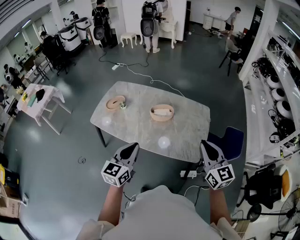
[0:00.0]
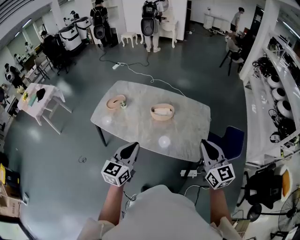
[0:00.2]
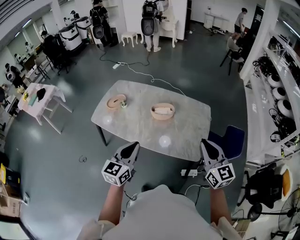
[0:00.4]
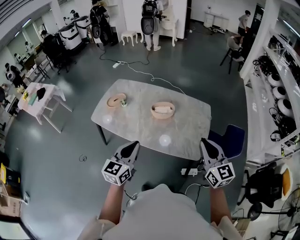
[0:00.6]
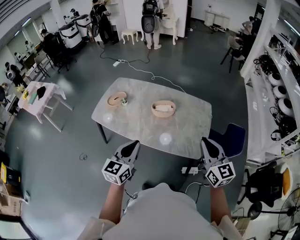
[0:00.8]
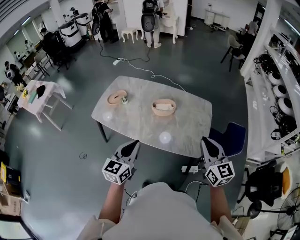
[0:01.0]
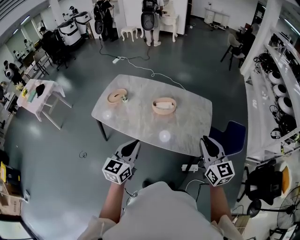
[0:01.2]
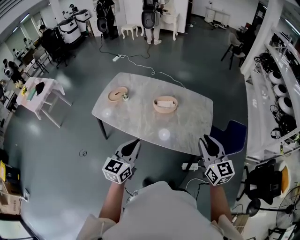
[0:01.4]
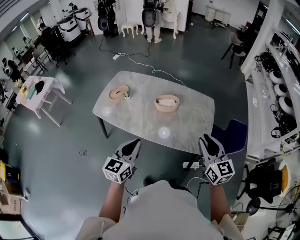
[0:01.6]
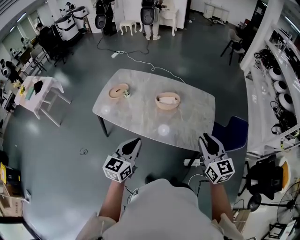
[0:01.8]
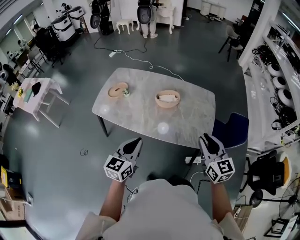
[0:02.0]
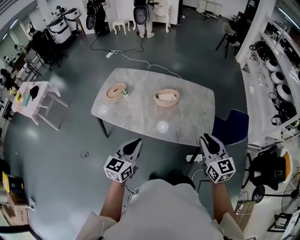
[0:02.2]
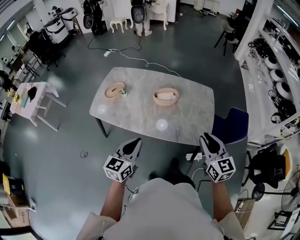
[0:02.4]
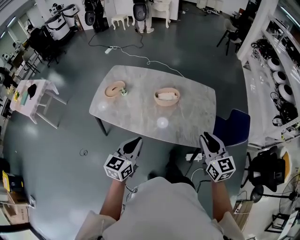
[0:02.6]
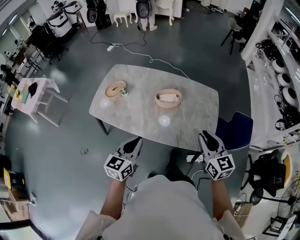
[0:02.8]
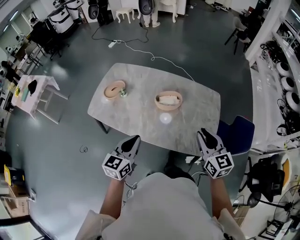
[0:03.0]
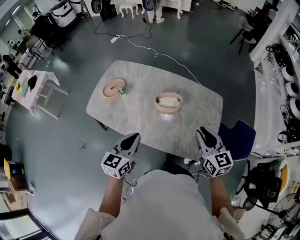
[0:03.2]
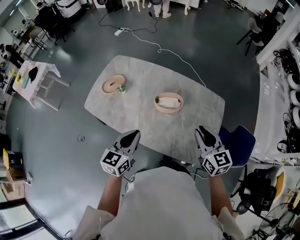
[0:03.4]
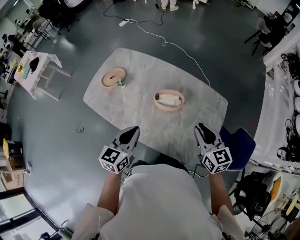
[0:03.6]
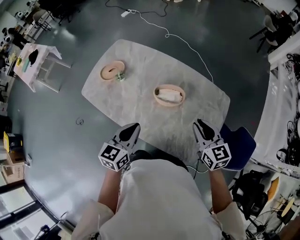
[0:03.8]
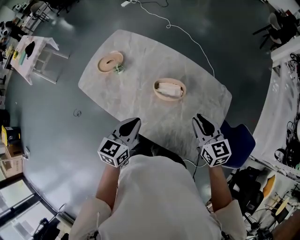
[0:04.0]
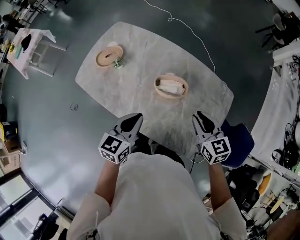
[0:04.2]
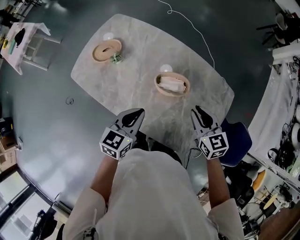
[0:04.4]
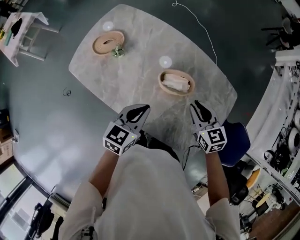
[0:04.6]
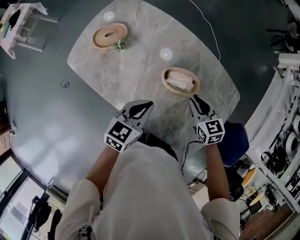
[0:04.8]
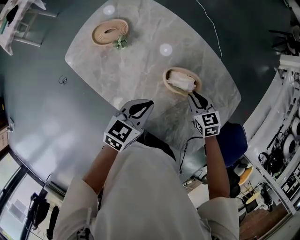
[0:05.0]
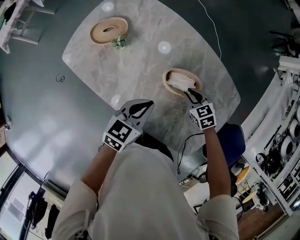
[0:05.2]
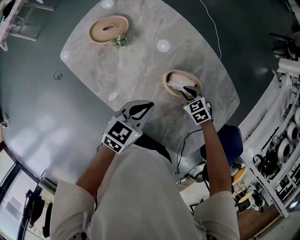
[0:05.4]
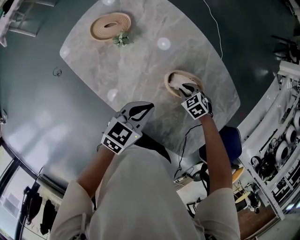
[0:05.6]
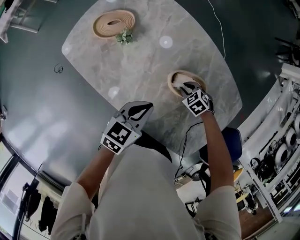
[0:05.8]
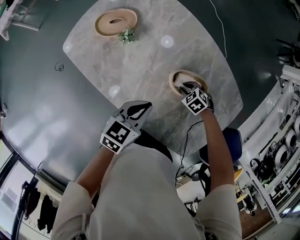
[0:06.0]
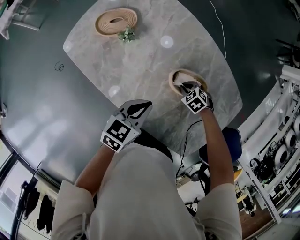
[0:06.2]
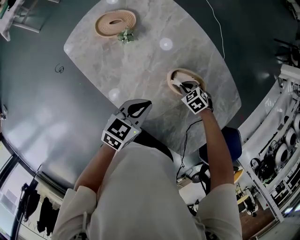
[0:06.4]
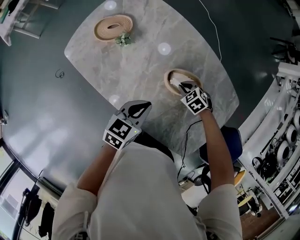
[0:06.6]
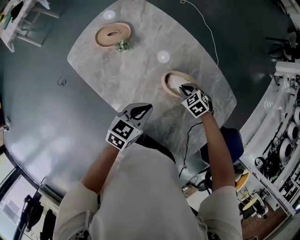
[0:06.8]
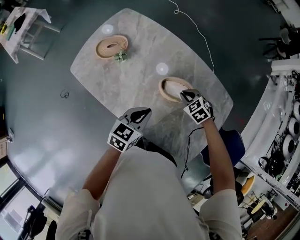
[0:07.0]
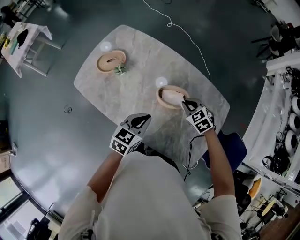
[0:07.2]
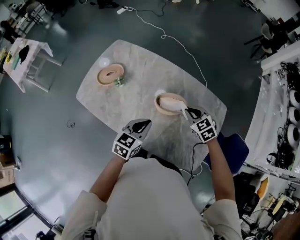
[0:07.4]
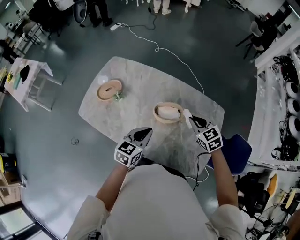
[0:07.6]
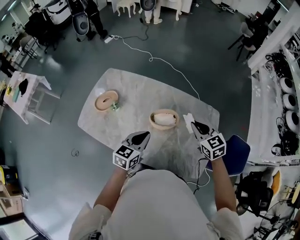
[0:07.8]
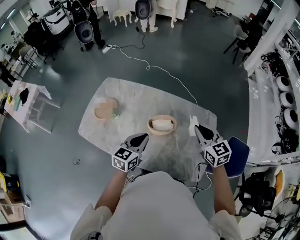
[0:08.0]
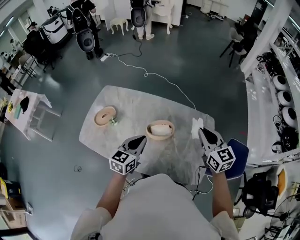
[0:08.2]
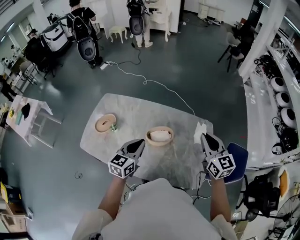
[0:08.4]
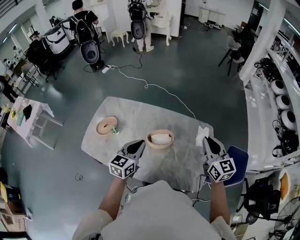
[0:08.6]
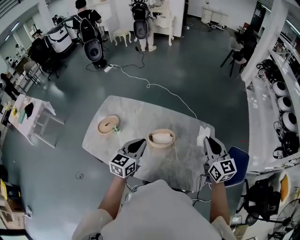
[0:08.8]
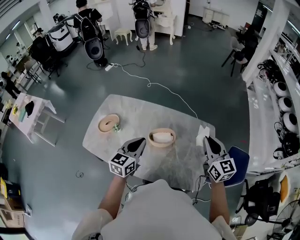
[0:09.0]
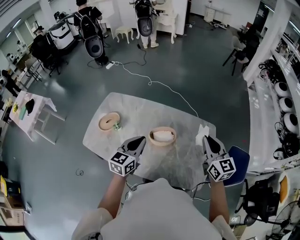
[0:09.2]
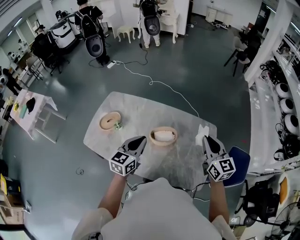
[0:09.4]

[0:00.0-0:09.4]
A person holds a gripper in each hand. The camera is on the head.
0:00.0 to 0:01.6: The grippers make only small movements.
0:01.6 to 0:03.2: Both grippers travel together forward, approximately 20 cm.
0:03.2 to 0:04.8: The grippers both shift forward and downward by about 30 cm. The right gripper swivels some 30 degrees.
0:04.8 to 0:06.2: The left gripper heads downward, covering about 5 cm. The right gripper shifts about 25 cm downward, and angles its fingers downward, by about 30 degrees.
0:06.2 to 0:07.8: The right gripper moves upward, roughly 40 cm, and tilts its fingers some 40 degrees upward. The left gripper goes roughly 15 cm upward, and rotates approximately 20 degrees.
0:07.8 to 0:09.4: The left gripper shifts about 10 cm upward; the right gripper is displaced upward and to the right by approximately 15 cm, and changes its angle by approximately 30 degrees.

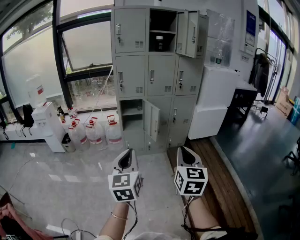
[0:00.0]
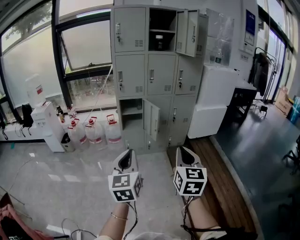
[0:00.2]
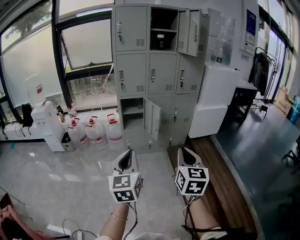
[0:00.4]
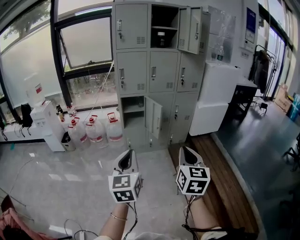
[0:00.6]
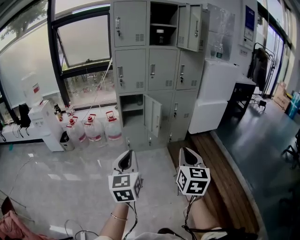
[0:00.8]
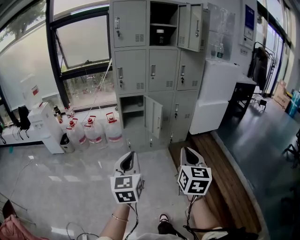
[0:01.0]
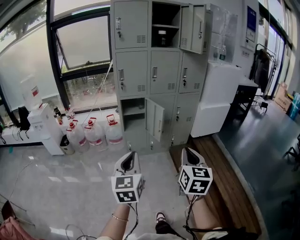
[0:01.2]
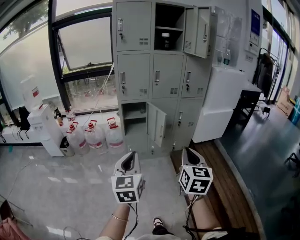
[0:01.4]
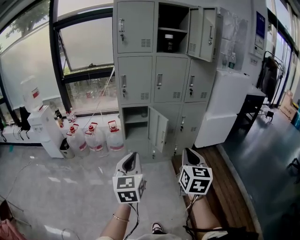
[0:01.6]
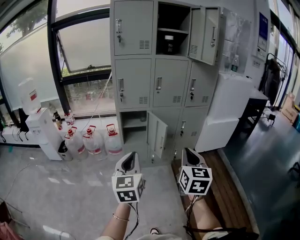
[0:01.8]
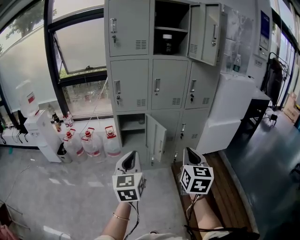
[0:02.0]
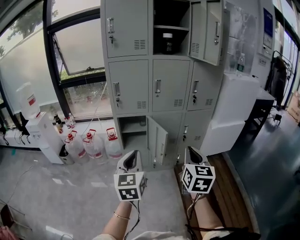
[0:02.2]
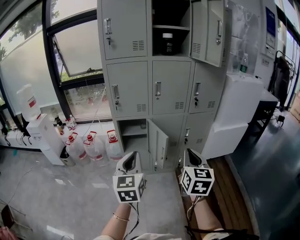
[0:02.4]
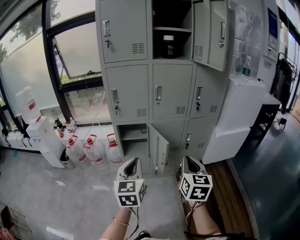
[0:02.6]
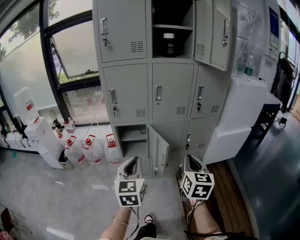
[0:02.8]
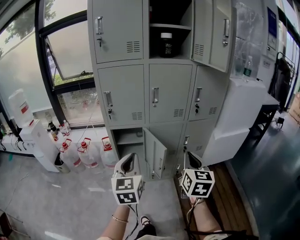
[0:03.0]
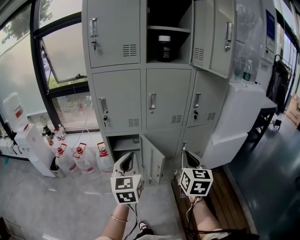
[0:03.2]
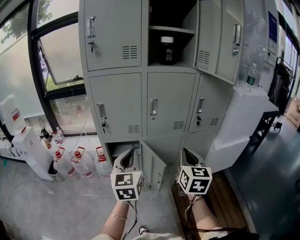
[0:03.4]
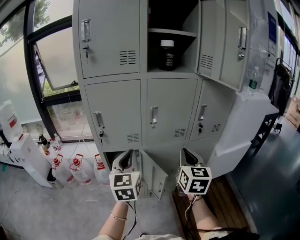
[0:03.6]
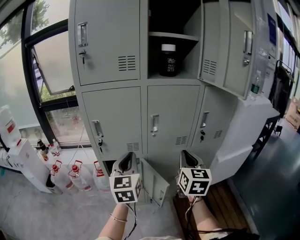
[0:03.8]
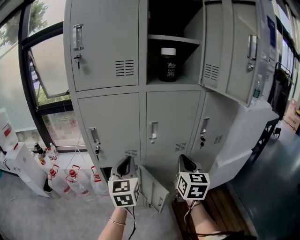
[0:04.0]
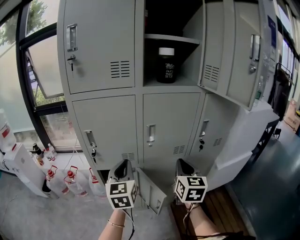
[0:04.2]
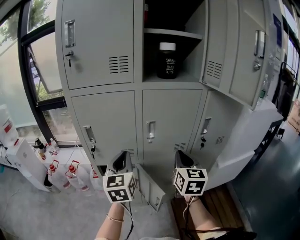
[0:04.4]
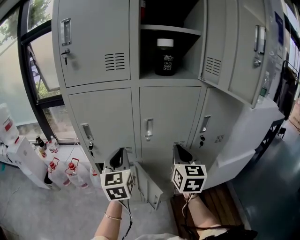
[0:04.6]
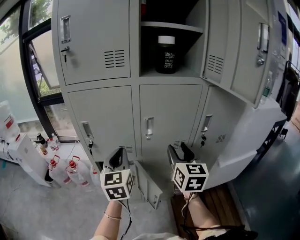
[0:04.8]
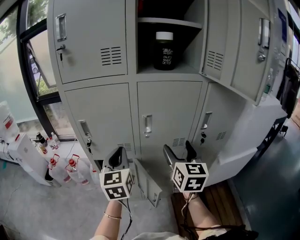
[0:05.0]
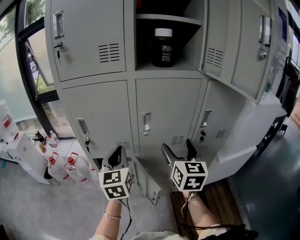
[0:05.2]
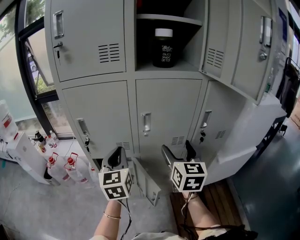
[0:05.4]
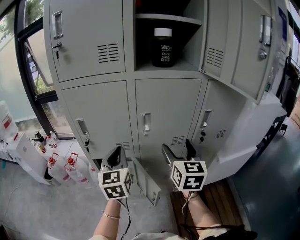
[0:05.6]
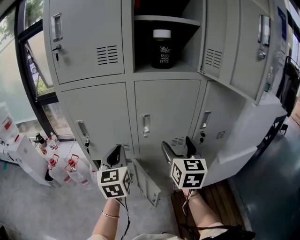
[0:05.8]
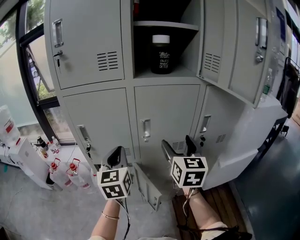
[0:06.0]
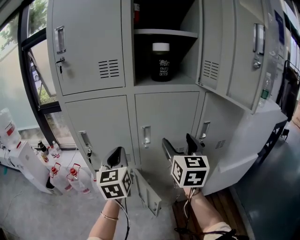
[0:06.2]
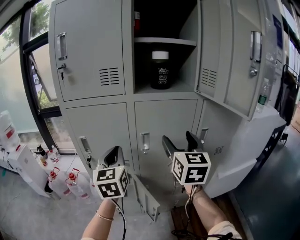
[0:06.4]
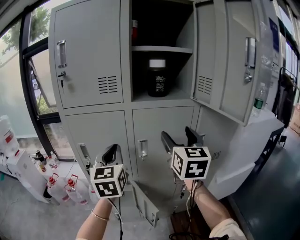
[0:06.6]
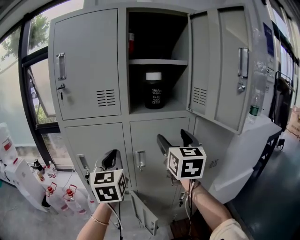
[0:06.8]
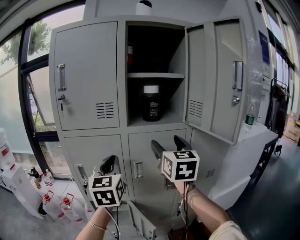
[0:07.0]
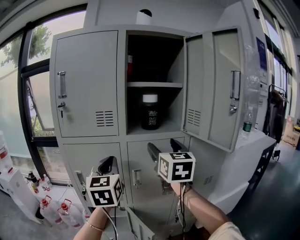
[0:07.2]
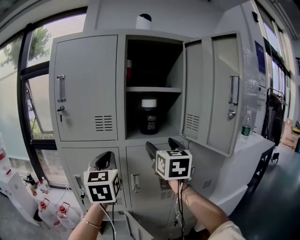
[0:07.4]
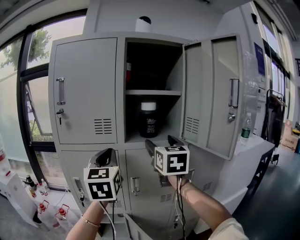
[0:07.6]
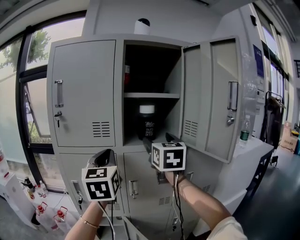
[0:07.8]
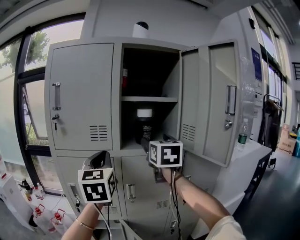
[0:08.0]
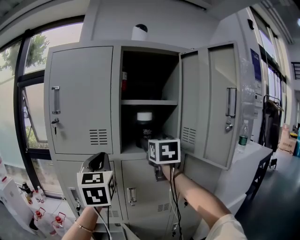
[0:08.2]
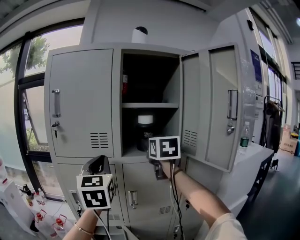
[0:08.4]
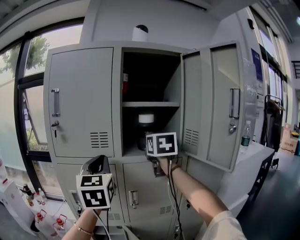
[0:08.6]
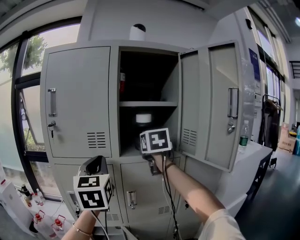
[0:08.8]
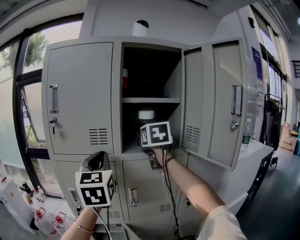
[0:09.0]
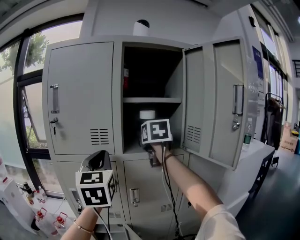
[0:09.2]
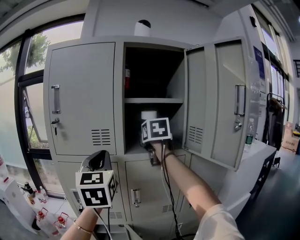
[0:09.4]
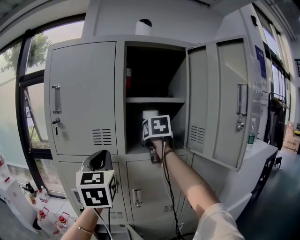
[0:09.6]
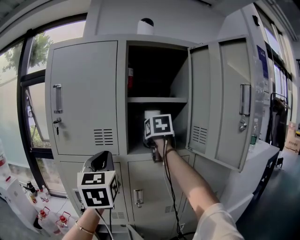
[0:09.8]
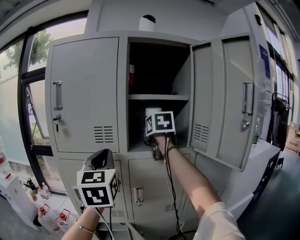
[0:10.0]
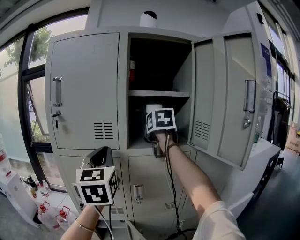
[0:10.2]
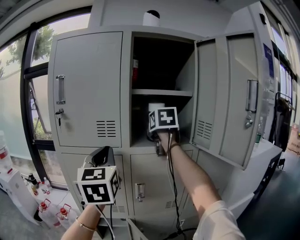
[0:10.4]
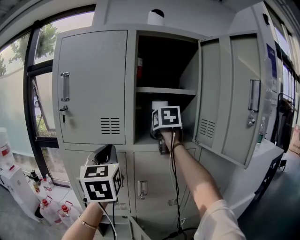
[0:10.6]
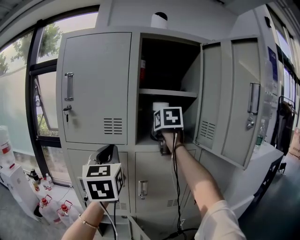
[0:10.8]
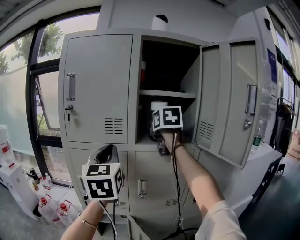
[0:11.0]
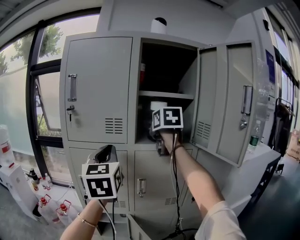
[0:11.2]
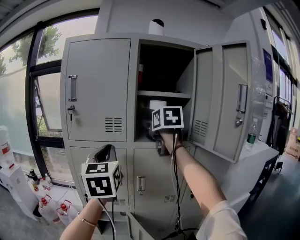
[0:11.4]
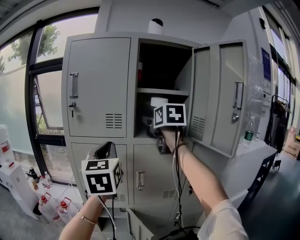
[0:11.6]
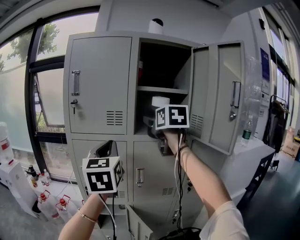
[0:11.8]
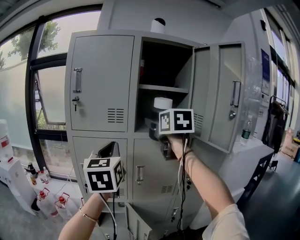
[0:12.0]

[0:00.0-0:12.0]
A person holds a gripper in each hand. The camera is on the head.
0:00.0 to 0:01.6: The grippers both shift forward by some 10 cm.
0:01.6 to 0:03.0: Both grippers travel together forward, approximately 25 cm.
0:03.0 to 0:04.4: The grippers both shift forward by approximately 25 cm.
0:04.4 to 0:06.0: The right gripper moves about 5 cm, and opens.
0:06.0 to 0:07.6: The two grippers go roughly 20 cm upward.
0:07.6 to 0:09.0: The right gripper moves forward, some 10 cm.
0:09.0 to 0:10.4: The grippers stay close to where they were, moving slightly.
0:10.4 to 0:12.0: The left gripper travels backward by roughly 5 cm. Meanwhile the right gripper heads backward, covering approximately 15 cm.

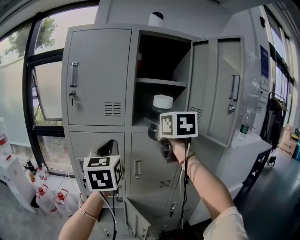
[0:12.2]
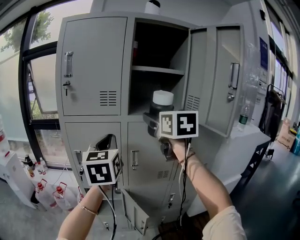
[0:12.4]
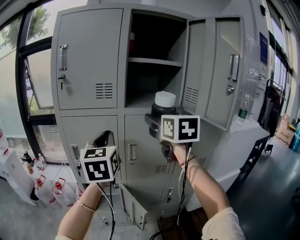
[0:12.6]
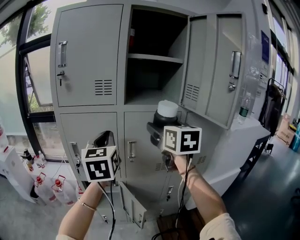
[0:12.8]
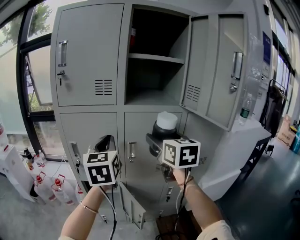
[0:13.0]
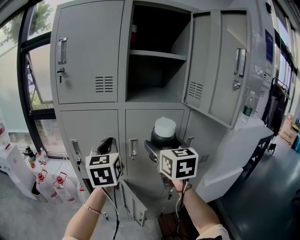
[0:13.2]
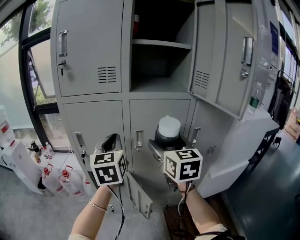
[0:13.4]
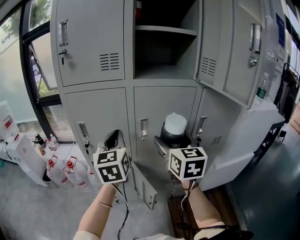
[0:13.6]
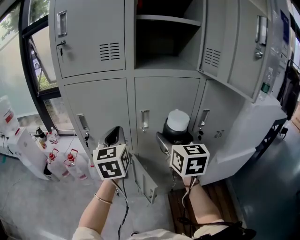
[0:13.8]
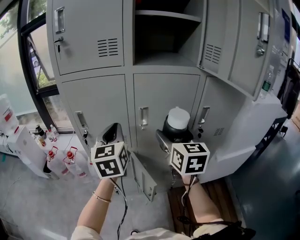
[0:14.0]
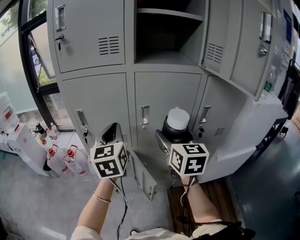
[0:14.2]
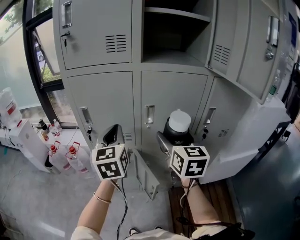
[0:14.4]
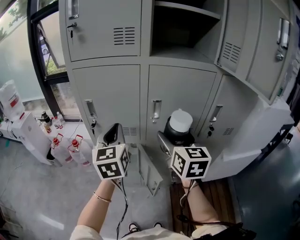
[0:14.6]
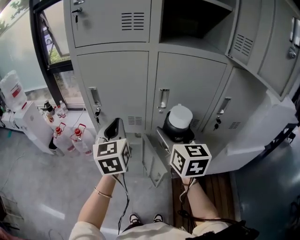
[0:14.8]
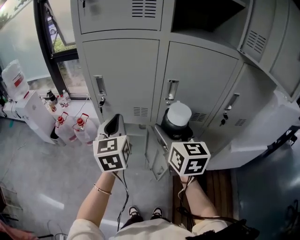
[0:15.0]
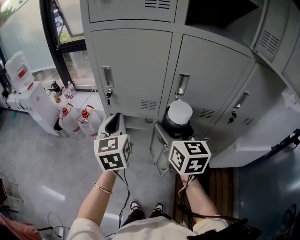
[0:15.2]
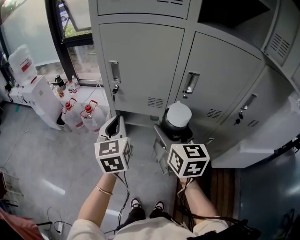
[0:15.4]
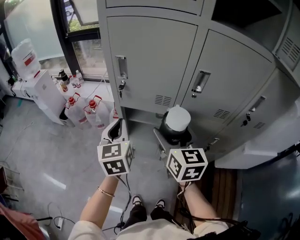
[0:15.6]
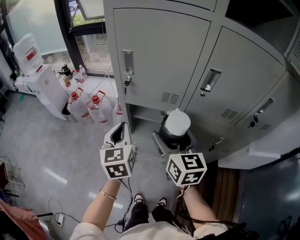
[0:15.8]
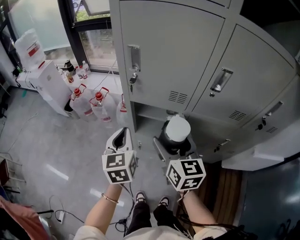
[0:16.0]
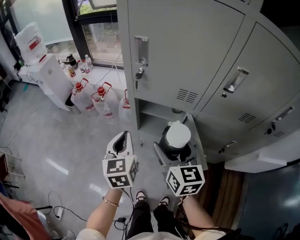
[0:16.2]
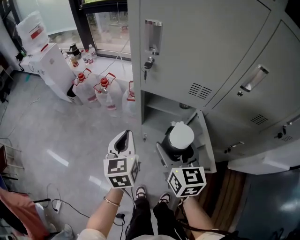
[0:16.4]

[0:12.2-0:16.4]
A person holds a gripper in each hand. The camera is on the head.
0:12.2 to 0:13.6: The right gripper moves downward, some 20 cm, while the left gripper shifts some 15 cm downward.
0:13.6 to 0:15.0: The two grippers go roughly 15 cm downward and to the left.
0:15.0 to 0:16.4: Both grippers move downward and to the left, approximately 25 cm.
